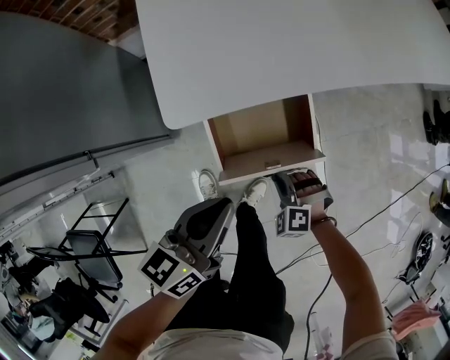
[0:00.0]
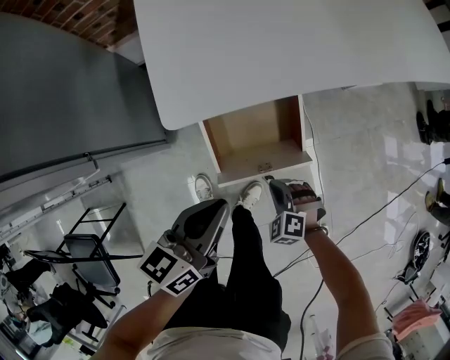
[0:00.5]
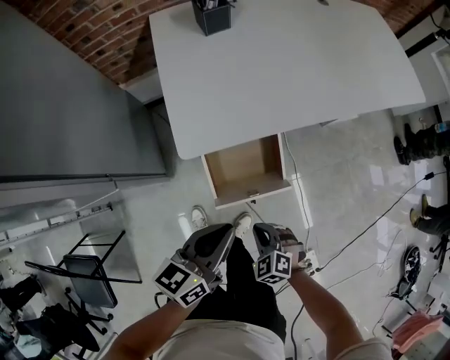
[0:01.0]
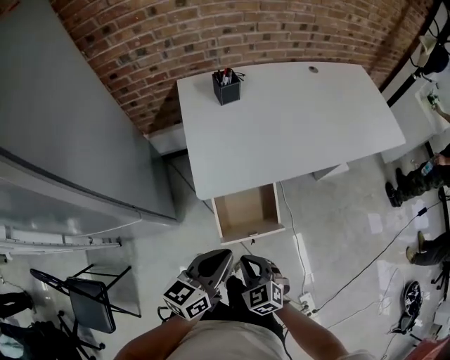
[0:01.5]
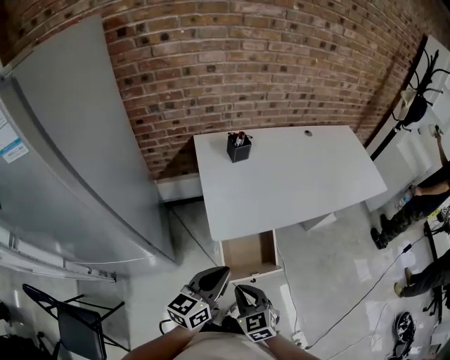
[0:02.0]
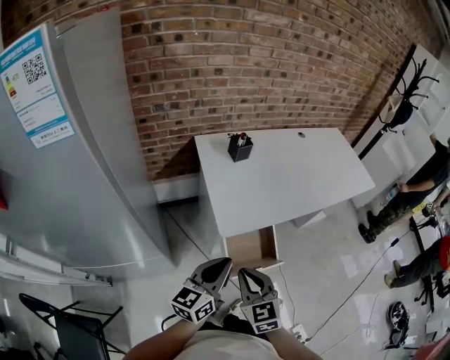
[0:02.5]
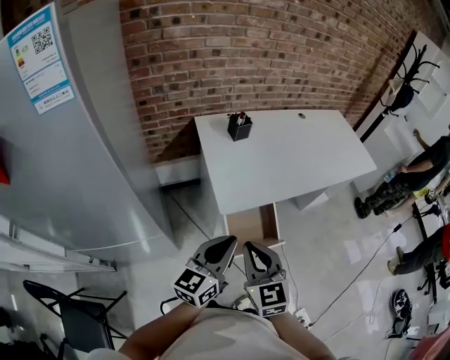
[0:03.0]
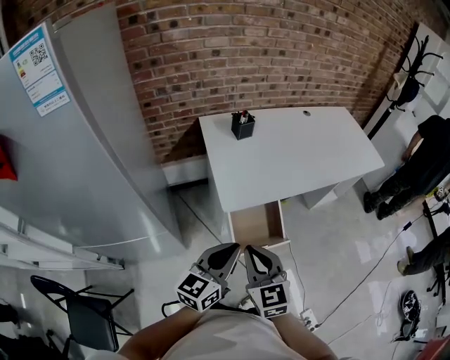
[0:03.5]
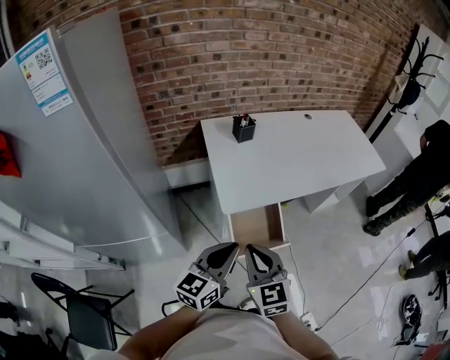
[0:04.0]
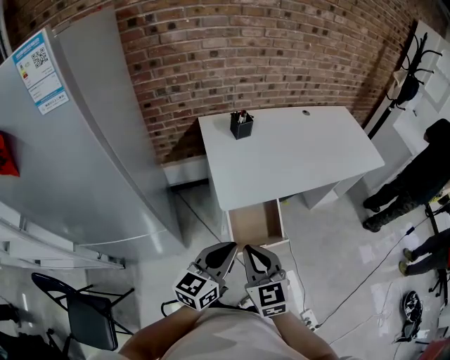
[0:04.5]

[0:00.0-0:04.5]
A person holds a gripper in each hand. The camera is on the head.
0:00.0 to 0:02.0: The left gripper travels upward by approximately 20 cm. Meanwhile the right gripper goes about 35 cm upward and to the left, and rolls clockwise, seen from behind, by some 50 degrees.
0:02.0 to 0:04.5: The right gripper shifts about 10 cm upward. Meanwhile the left gripper travels backward by about 5 cm.

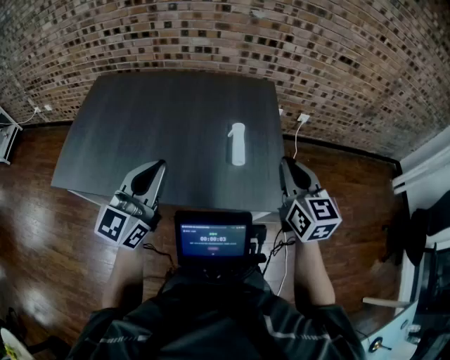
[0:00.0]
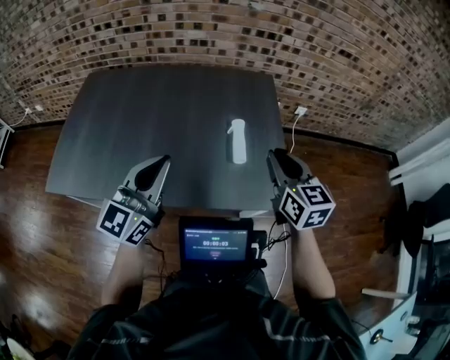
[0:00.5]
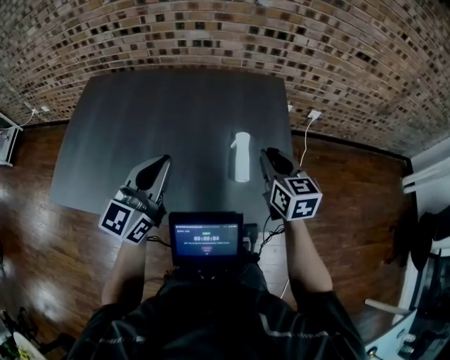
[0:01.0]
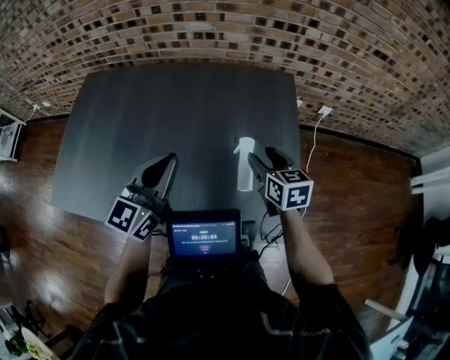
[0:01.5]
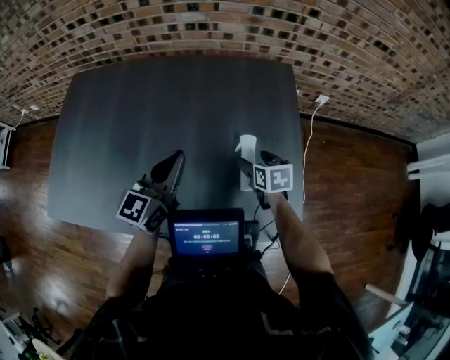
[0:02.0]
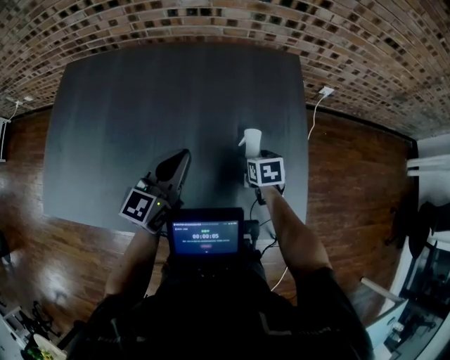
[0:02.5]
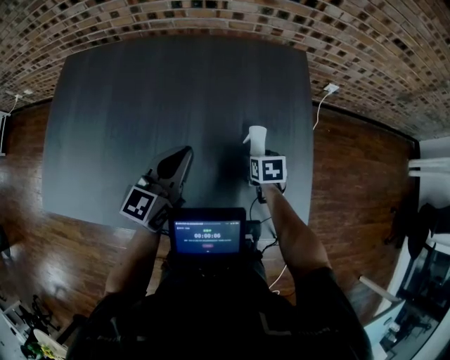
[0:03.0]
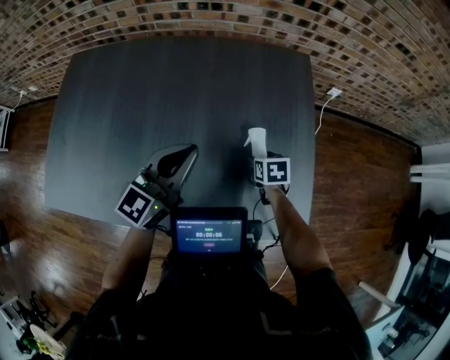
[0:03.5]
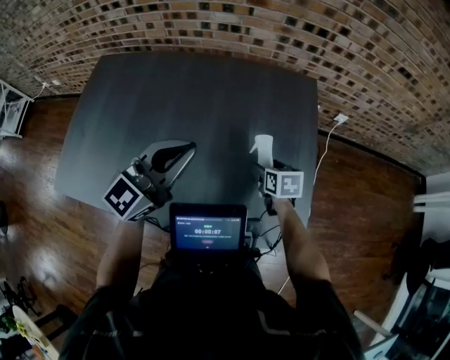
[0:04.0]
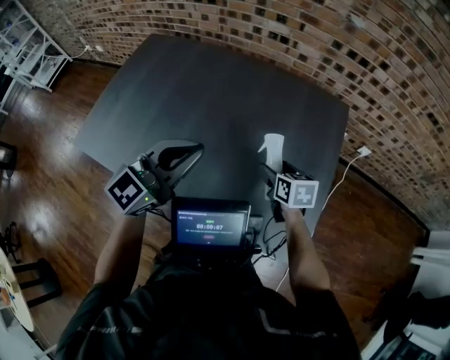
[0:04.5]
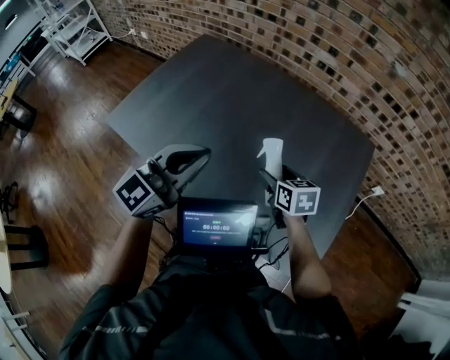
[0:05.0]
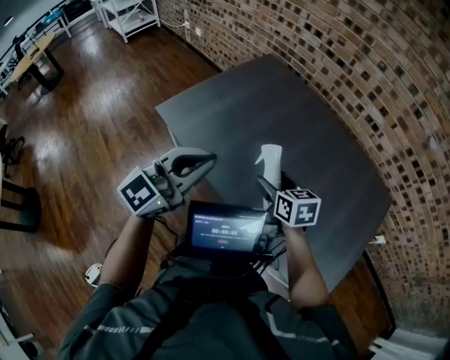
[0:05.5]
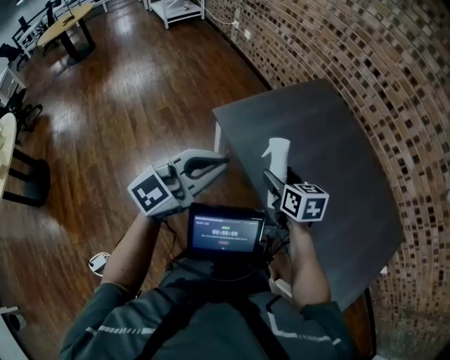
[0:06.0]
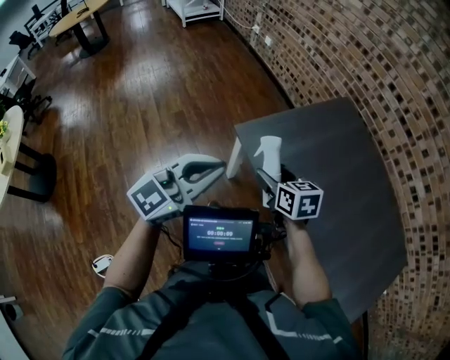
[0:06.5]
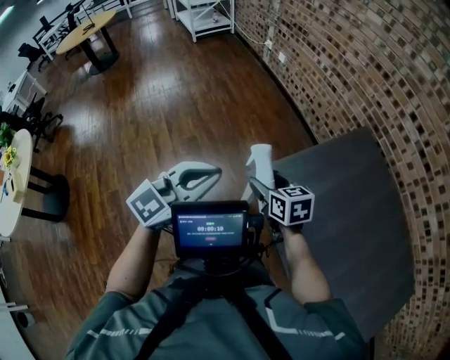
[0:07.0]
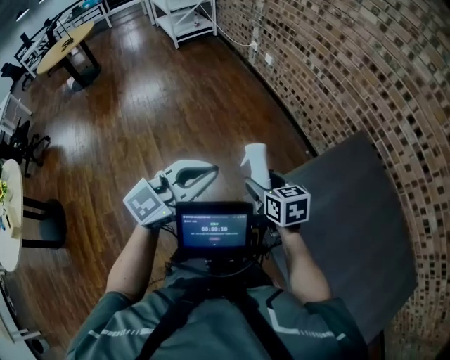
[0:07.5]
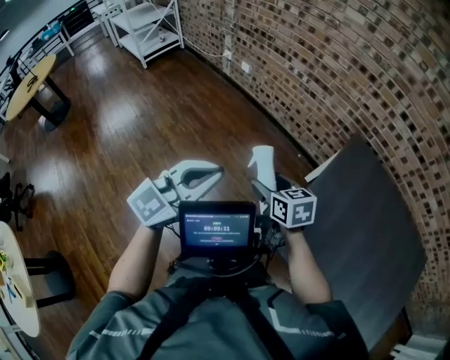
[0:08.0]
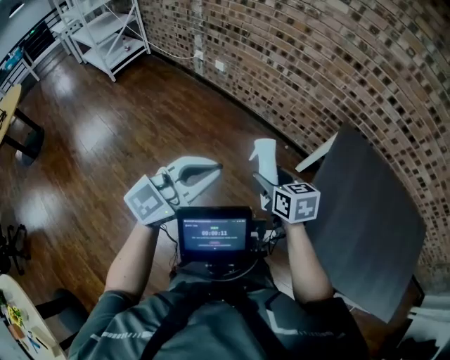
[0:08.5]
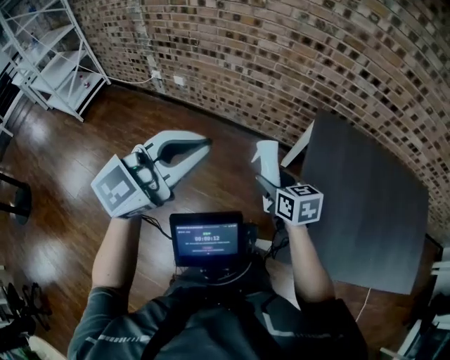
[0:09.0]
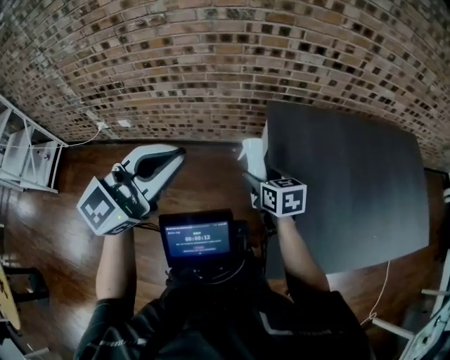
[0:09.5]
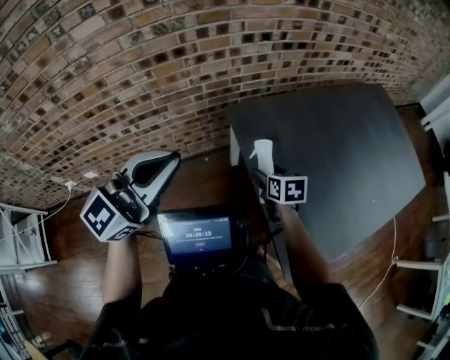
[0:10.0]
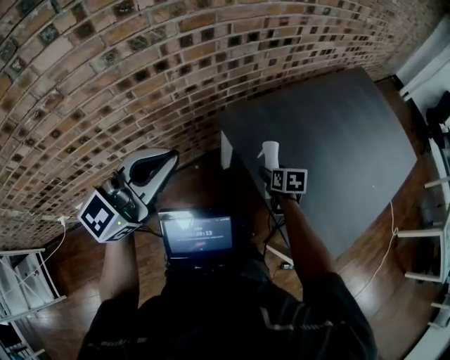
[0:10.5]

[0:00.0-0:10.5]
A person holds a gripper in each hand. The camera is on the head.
0:00.0 to 0:02.0: The right gripper goes about 40 cm downward and forward, tips its fingers downward by roughly 40 degrees, and opens its fingers. The left gripper is displaced forward and downward by approximately 30 cm.
0:02.0 to 0:04.0: The right gripper moves some 10 cm downward and comes back. The left gripper moves upward, roughly 5 cm, and rotates roughly 20 degrees.
0:04.0 to 0:06.5: Both grippers are carried about 70 cm. The right gripper swivels about 60 degrees; the left gripper rotates some 50 degrees.
0:06.5 to 0:08.5: Both grippers are carried some 50 cm. The right gripper turns by some 20 degrees, while the left gripper changes its angle by about 30 degrees.
0:08.5 to 0:10.5: The pair of grippers is taken roughly 50 cm. The right gripper swivels about 80 degrees, while the left gripper turns by about 60 degrees.

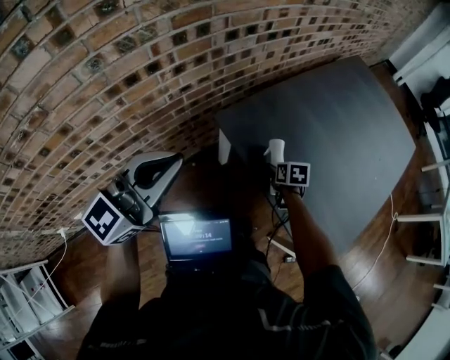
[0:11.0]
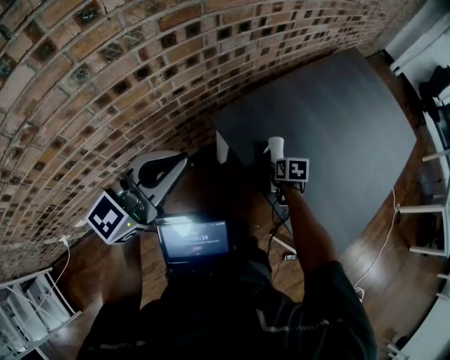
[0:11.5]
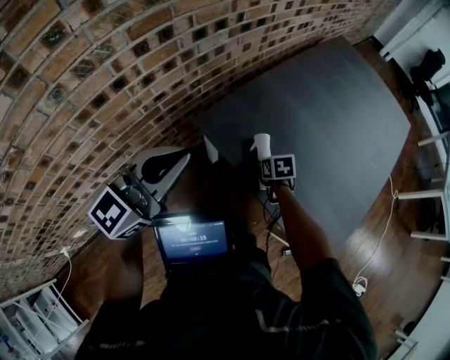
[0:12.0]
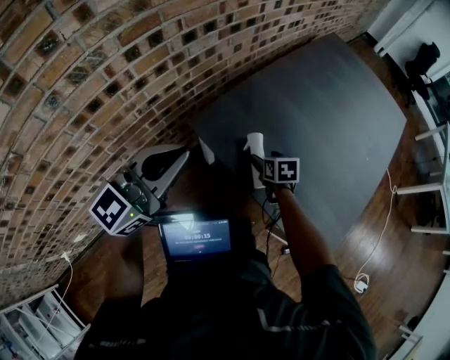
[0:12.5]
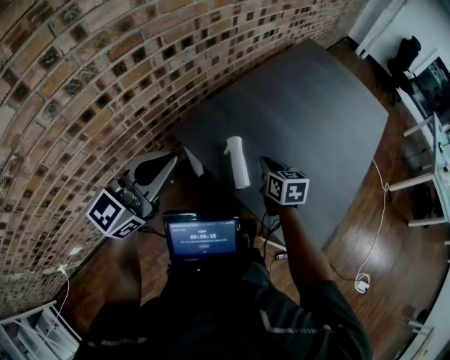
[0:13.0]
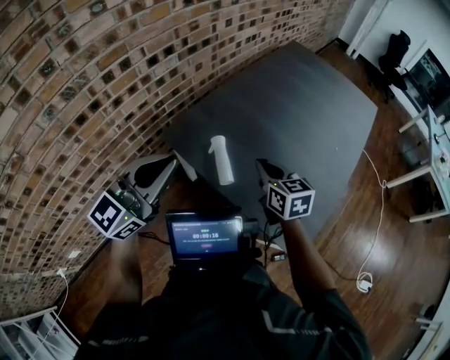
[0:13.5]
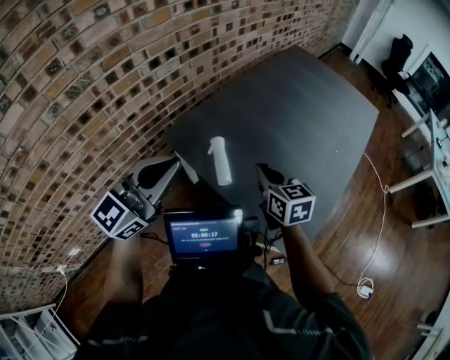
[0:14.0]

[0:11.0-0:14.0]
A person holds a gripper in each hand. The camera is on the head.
0:11.0 to 0:12.5: The left gripper goes some 10 cm forward and to the right.
0:12.5 to 0:14.0: The left gripper shifts about 15 cm to the right and backward; the right gripper shifts some 25 cm upward, to the right and backward, angles its fingers upward, by approximately 30 degrees, and closes.

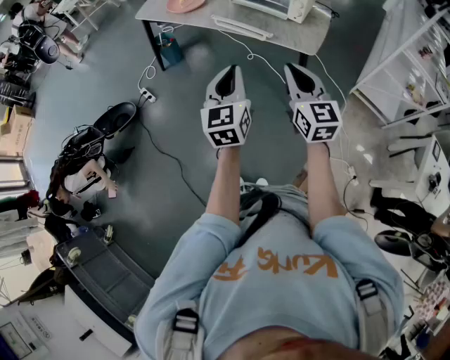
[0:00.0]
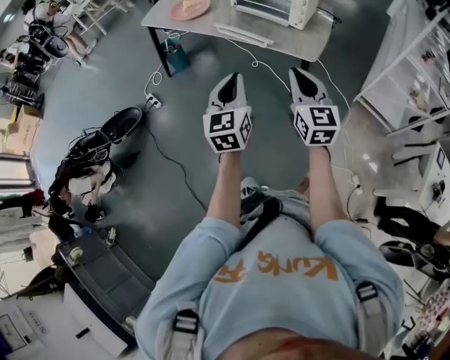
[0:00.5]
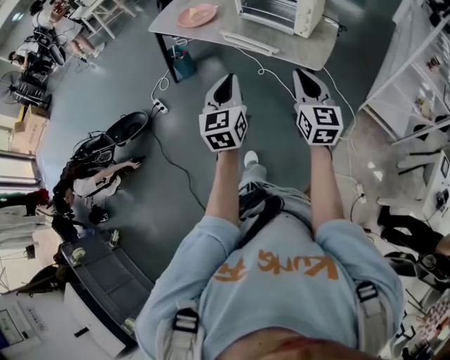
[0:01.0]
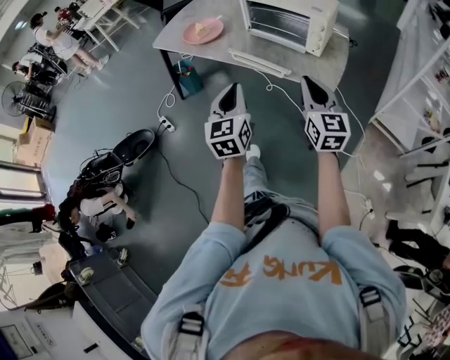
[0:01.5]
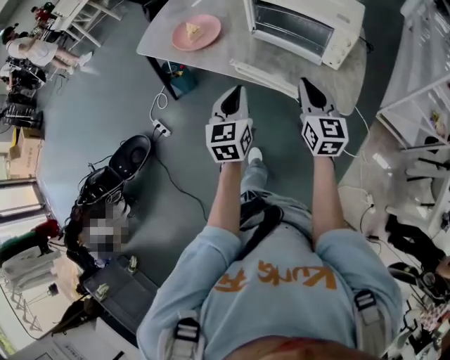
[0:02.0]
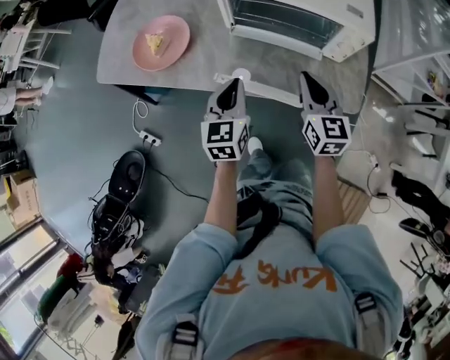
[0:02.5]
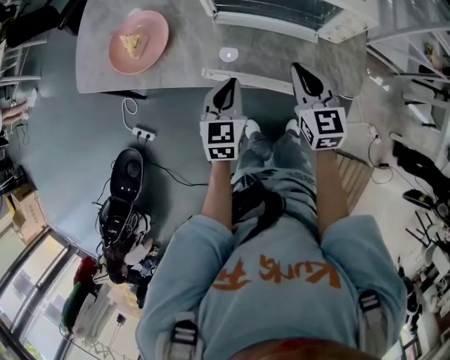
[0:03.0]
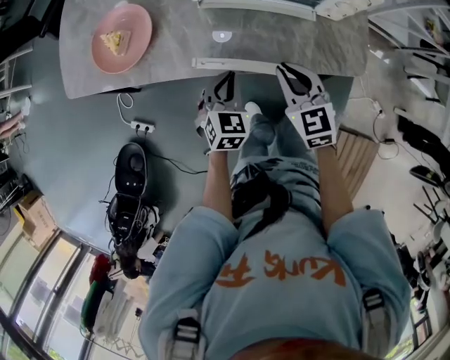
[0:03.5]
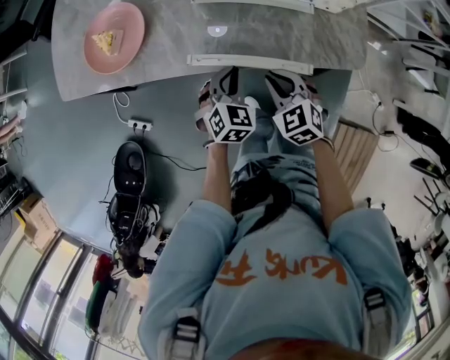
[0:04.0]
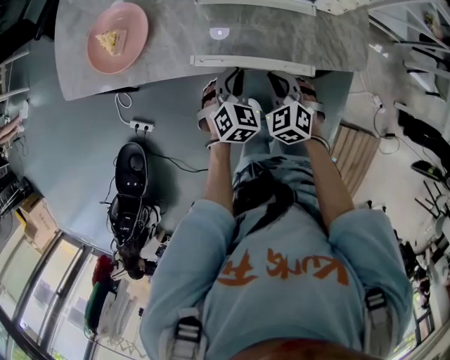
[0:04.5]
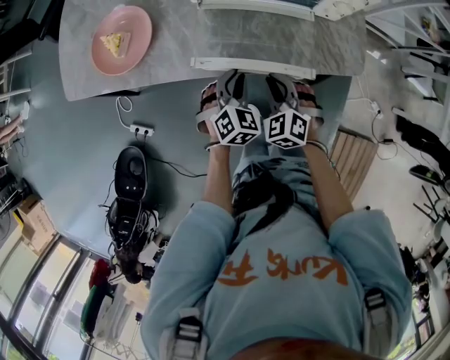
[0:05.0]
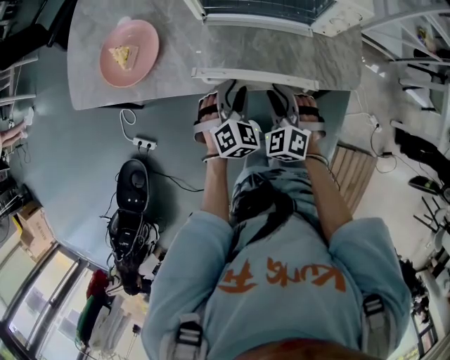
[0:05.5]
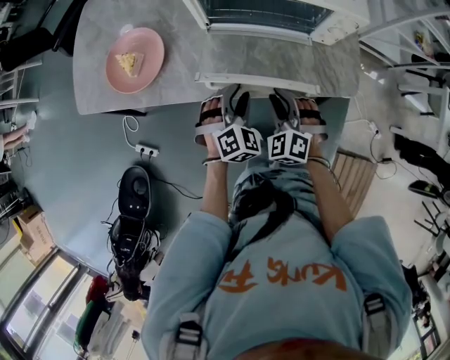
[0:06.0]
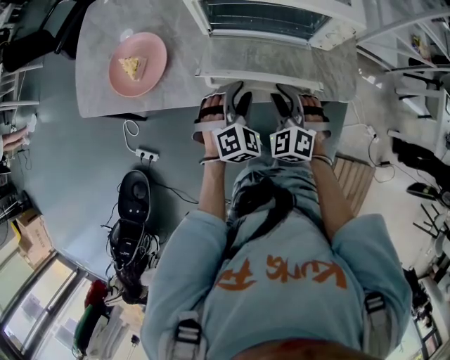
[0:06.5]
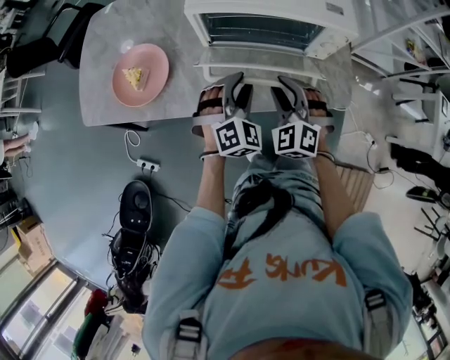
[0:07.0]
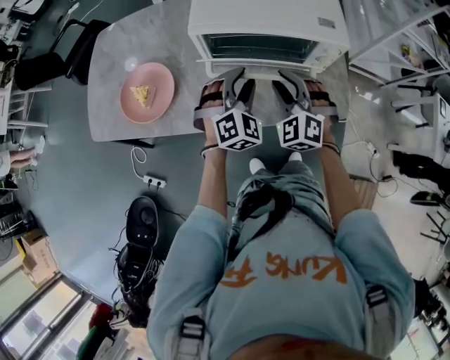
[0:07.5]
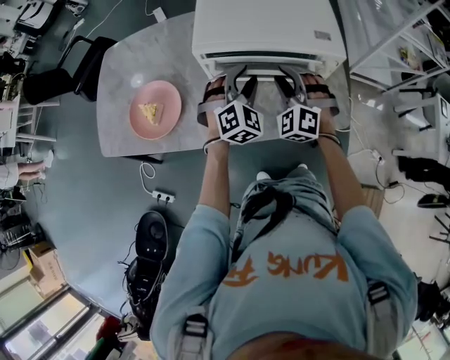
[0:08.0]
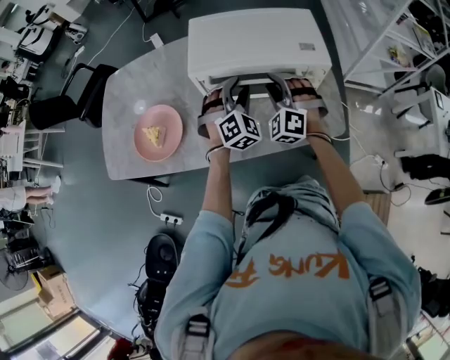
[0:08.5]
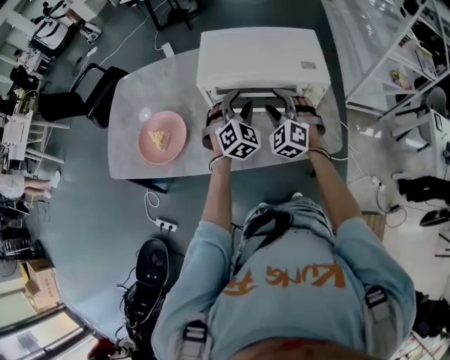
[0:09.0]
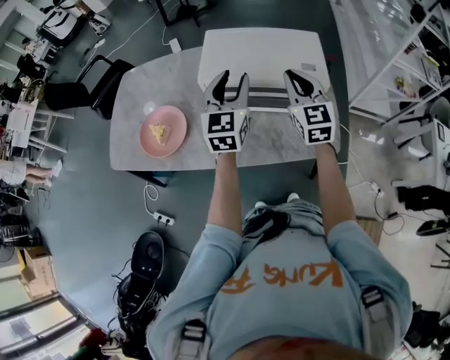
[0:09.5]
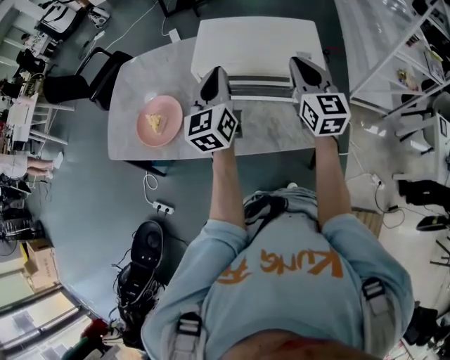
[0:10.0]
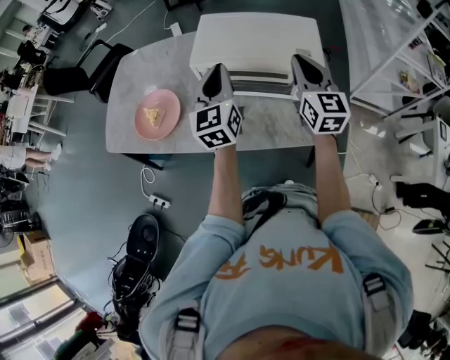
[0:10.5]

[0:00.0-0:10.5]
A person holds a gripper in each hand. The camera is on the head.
0:00.0 to 0:02.0: The grippers both shift forward by about 30 cm.
0:02.0 to 0:04.0: The left gripper travels downward and forward by some 25 cm, and tips its fingers downward by some 30 degrees. Meanwhile the right gripper is displaced downward by roughly 25 cm, and tips its fingers downward by approximately 40 degrees.
0:04.0 to 0:06.5: The grippers both shift upward by roughly 5 cm. The left gripper rotates some 30 degrees, and opens up. Meanwhile the right gripper swivels roughly 30 degrees.
0:06.5 to 0:08.5: Both grippers travel together forward and upward, roughly 20 cm.
0:08.5 to 0:10.5: The right gripper shifts some 20 cm upward and to the right, twists some 70 degrees clockwise, seen from behind, and closes. The left gripper goes about 15 cm upward, rolls counterclockwise, seen from behind, by approximately 60 degrees, and closes its fingers.
